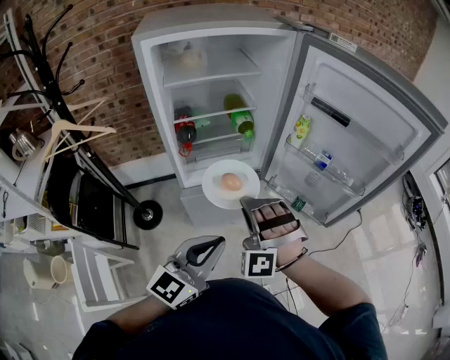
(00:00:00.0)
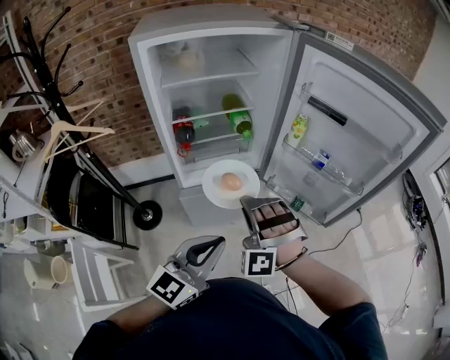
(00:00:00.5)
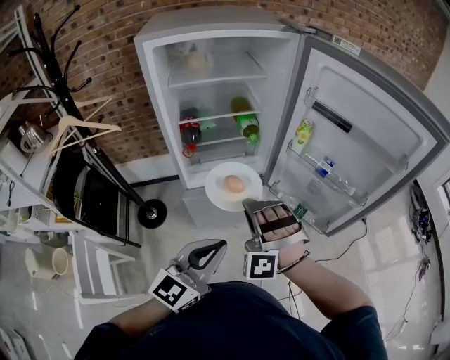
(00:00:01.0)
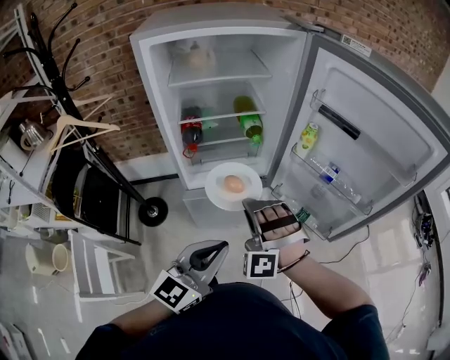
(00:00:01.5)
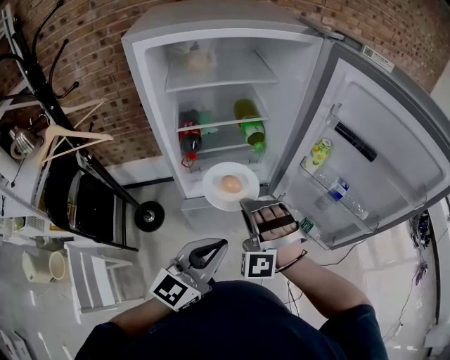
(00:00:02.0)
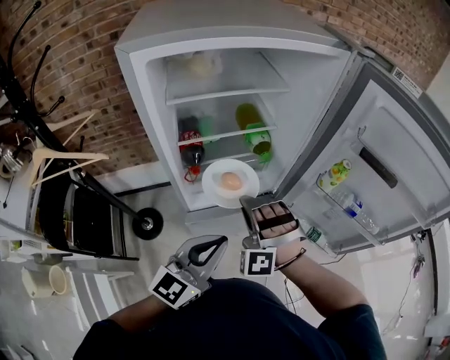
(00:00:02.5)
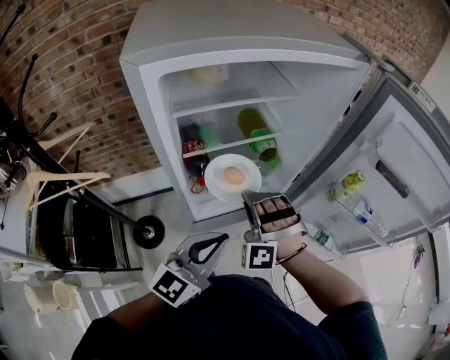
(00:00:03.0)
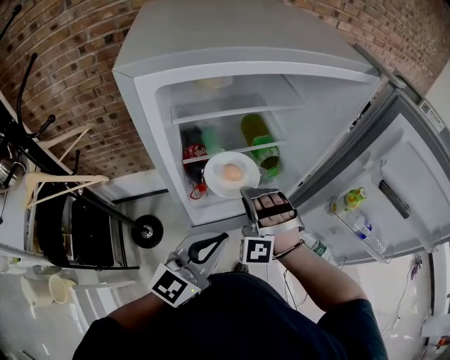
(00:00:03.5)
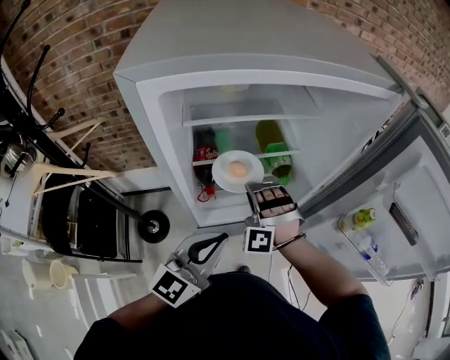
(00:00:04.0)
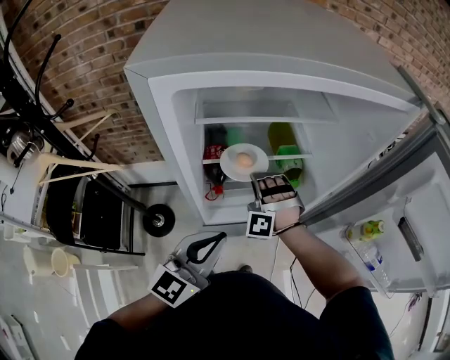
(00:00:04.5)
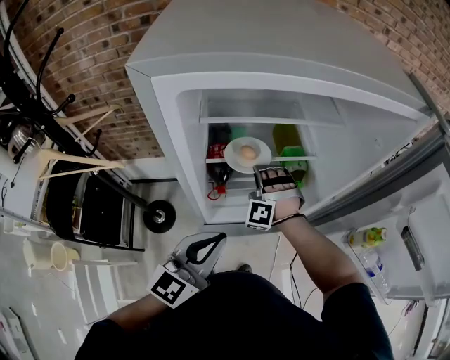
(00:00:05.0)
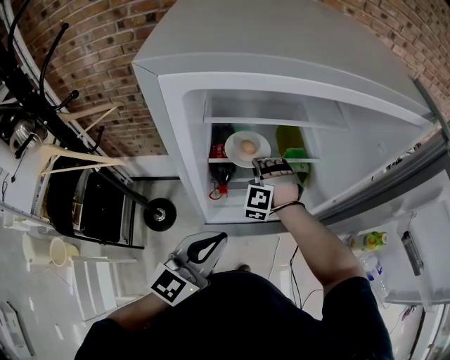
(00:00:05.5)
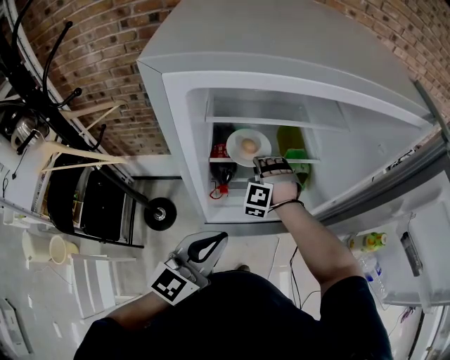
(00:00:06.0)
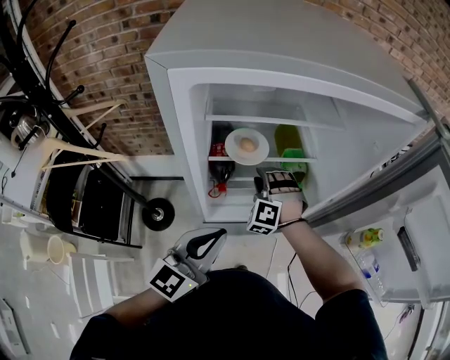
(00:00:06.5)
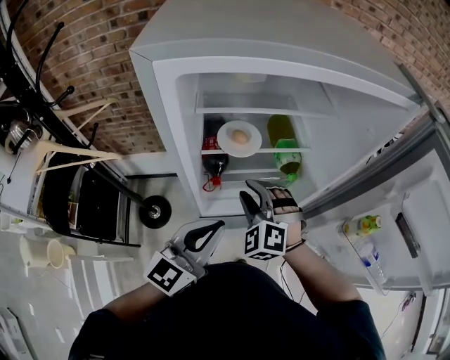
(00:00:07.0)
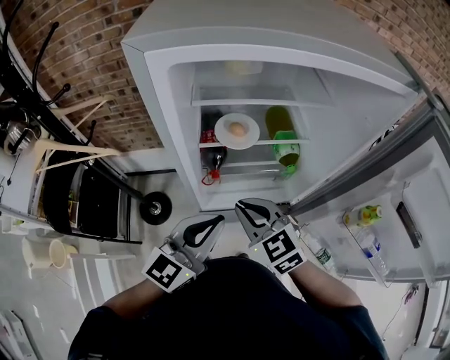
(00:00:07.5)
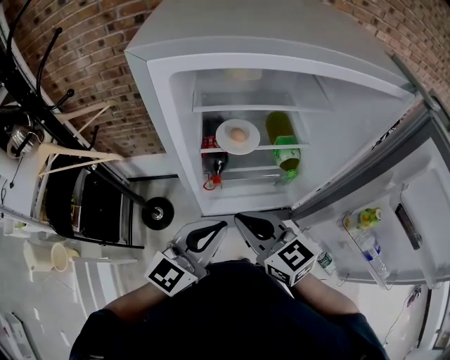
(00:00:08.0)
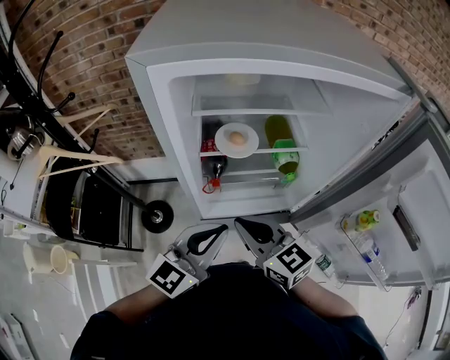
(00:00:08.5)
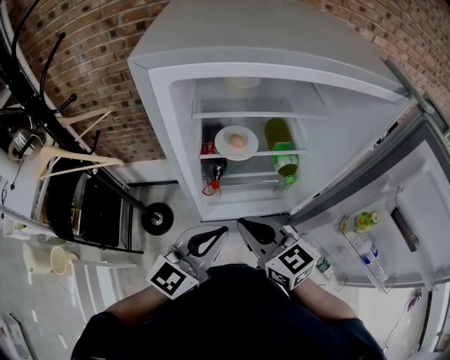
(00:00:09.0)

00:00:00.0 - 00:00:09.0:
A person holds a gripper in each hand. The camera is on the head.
00:00:00.0 - 00:00:02.0: The left gripper changes place by some 10 cm.
00:00:02.0 - 00:00:04.5: The left gripper moves roughly 25 cm.

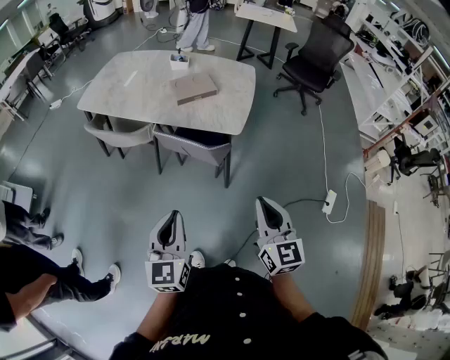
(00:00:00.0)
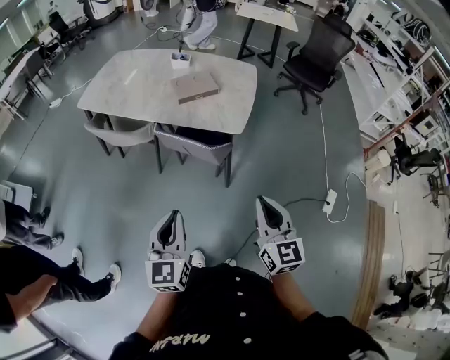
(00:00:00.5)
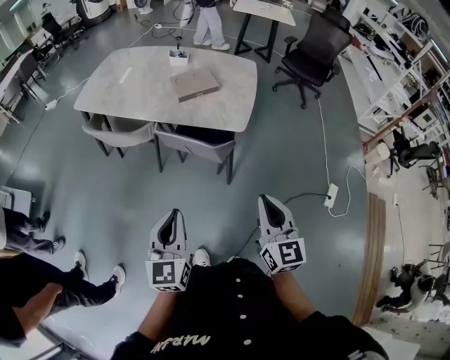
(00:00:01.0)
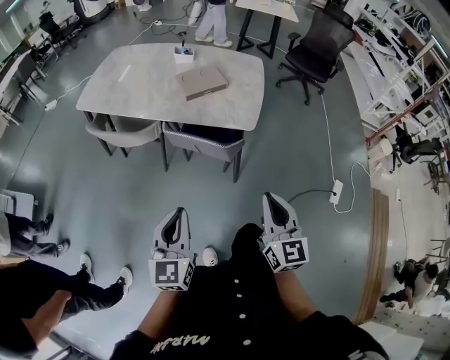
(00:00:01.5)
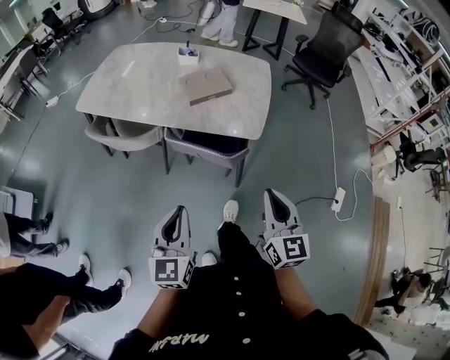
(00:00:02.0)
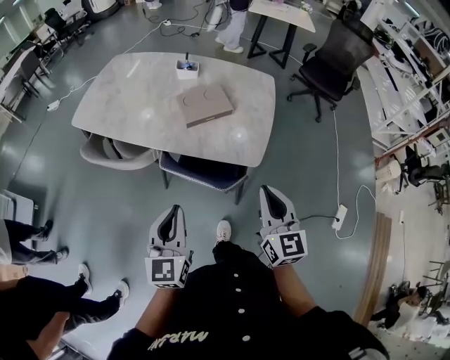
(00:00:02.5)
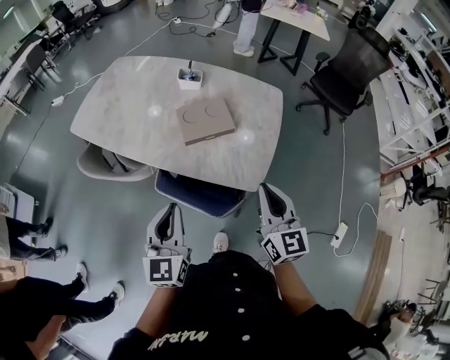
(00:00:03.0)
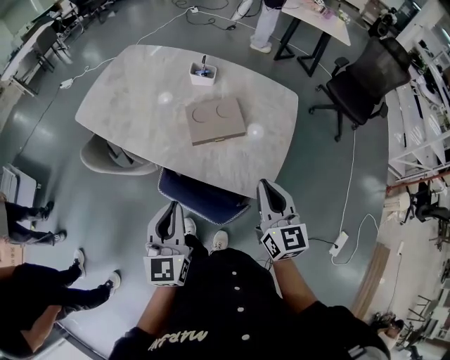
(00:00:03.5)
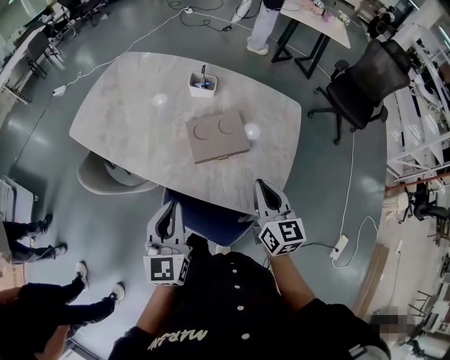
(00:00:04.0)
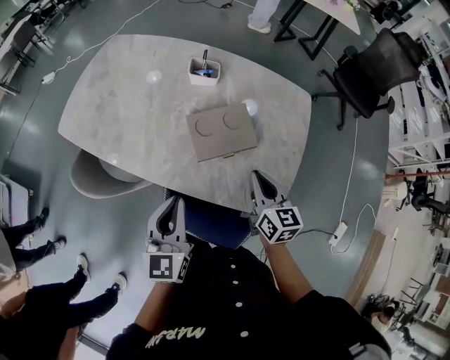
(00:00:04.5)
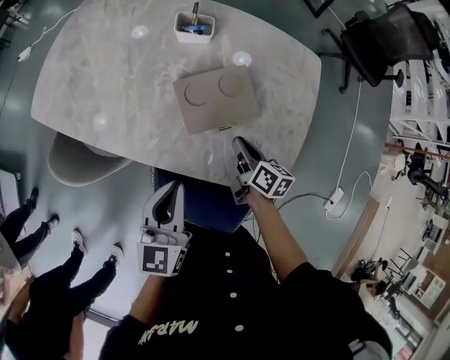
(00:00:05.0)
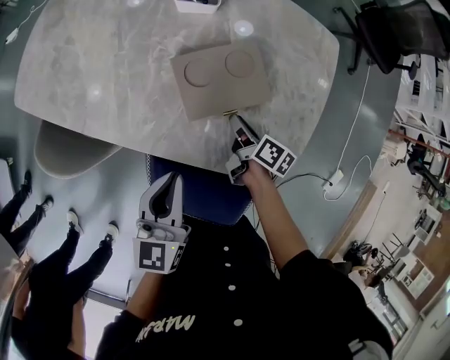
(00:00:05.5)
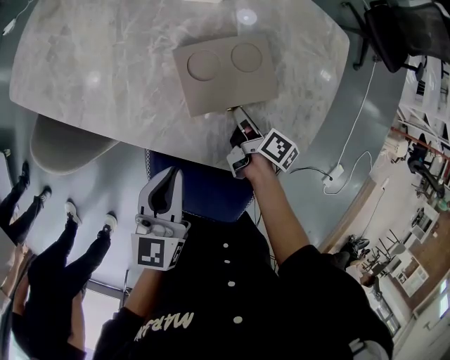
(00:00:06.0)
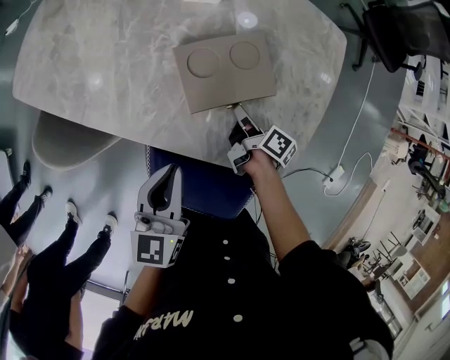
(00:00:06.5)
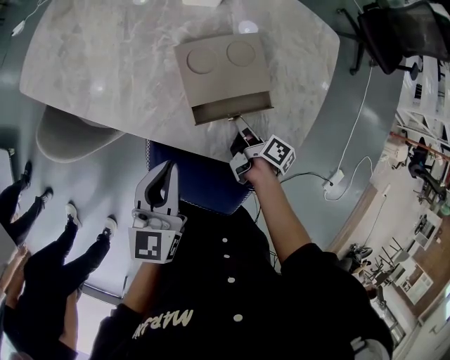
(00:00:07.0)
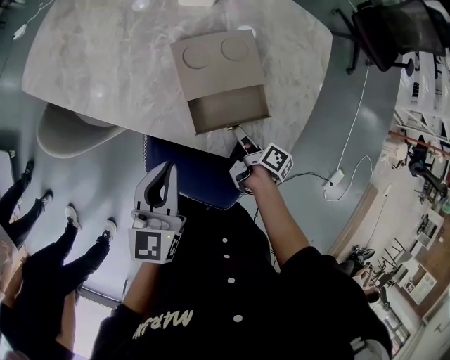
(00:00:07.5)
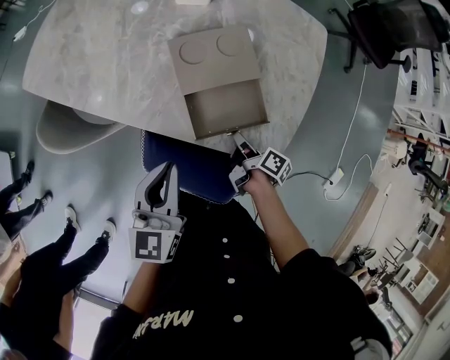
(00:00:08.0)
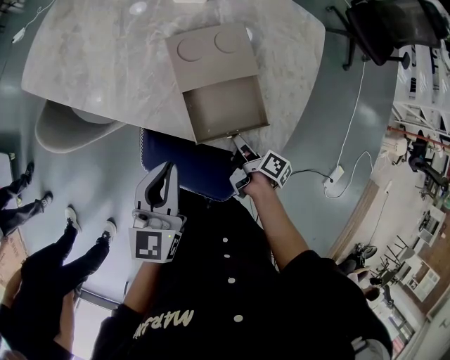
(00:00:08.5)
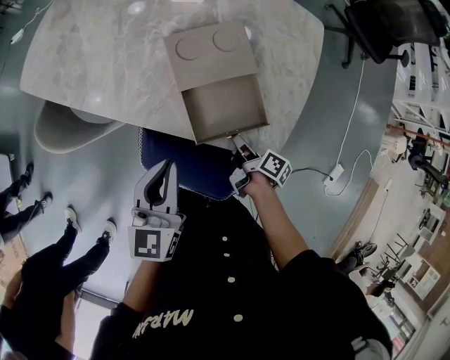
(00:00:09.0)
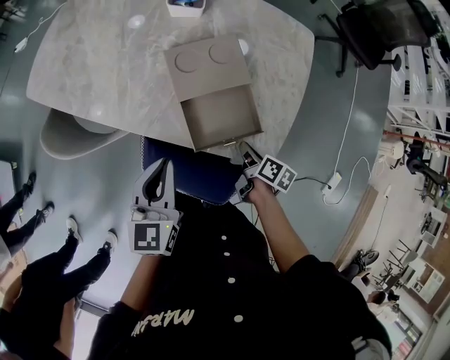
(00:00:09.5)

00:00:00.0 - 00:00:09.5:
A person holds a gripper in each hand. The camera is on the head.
00:00:00.0 - 00:00:02.0: Both grippers move forward and to the left, some 15 cm.
00:00:02.0 - 00:00:04.0: The grippers both shift forward by some 40 cm.
00:00:04.0 - 00:00:05.5: The right gripper moves downward and forward, some 30 cm, twists some 50 degrees clockwise, seen from behind, and opens up. Meanwhile the left gripper travels downward and forward by some 15 cm, and turns by roughly 20 degrees.
00:00:05.5 - 00:00:07.5: The right gripper travels backward by about 10 cm.
00:00:07.5 - 00:00:09.5: The right gripper is displaced backward by approximately 5 cm, and swivels about 20 degrees.

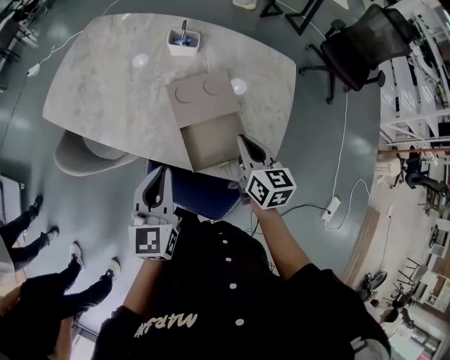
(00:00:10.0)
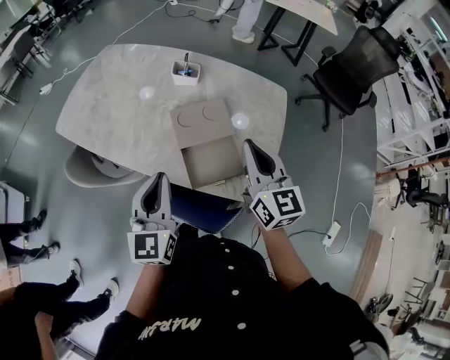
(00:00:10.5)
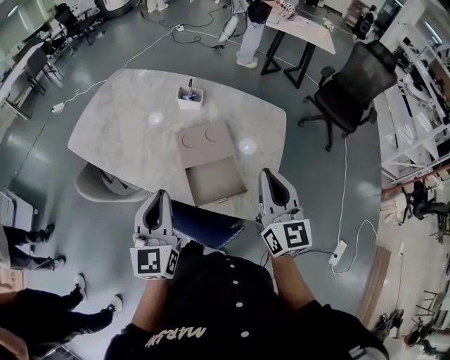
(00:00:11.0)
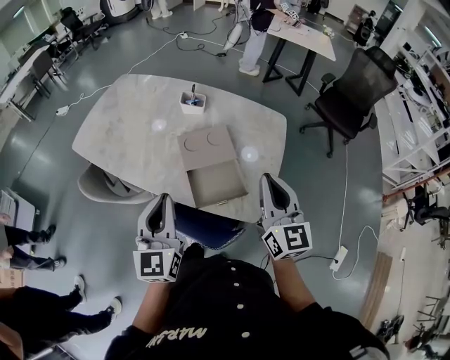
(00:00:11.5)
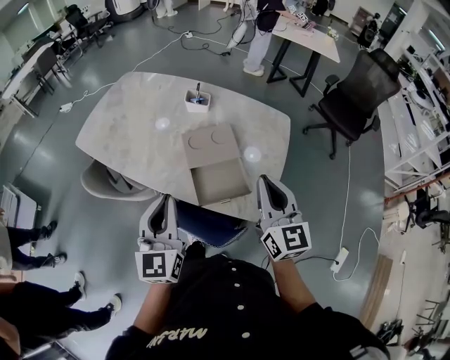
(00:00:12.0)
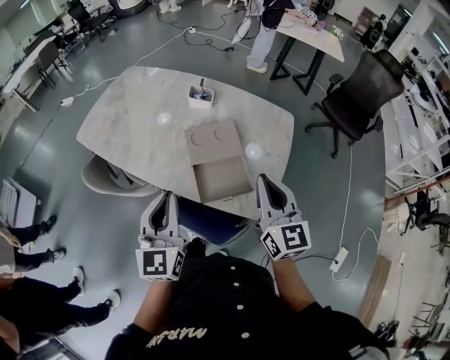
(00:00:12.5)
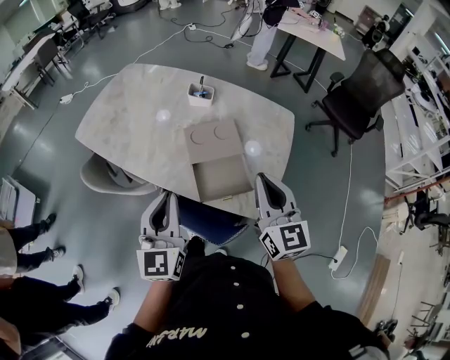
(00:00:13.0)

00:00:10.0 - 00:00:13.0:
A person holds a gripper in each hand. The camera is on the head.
00:00:10.0 - 00:00:11.5: The right gripper shifts some 20 cm upward and backward, and turns by about 30 degrees, while the left gripper moves upward and backward, approximately 10 cm.
00:00:11.5 - 00:00:13.0: The grippers move only a little.

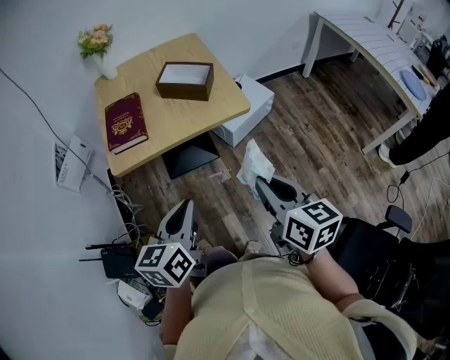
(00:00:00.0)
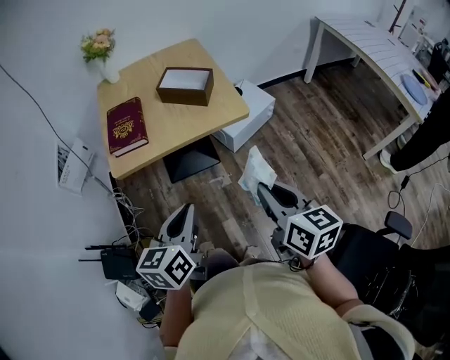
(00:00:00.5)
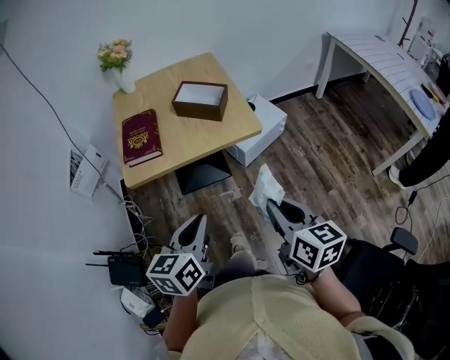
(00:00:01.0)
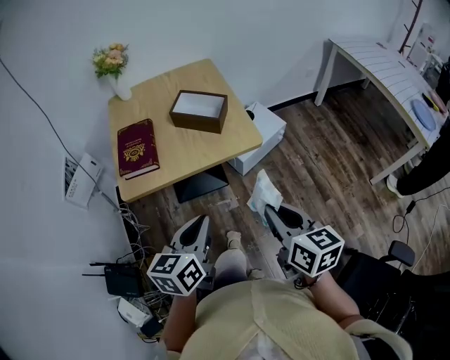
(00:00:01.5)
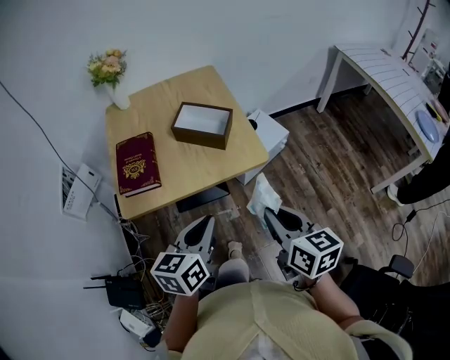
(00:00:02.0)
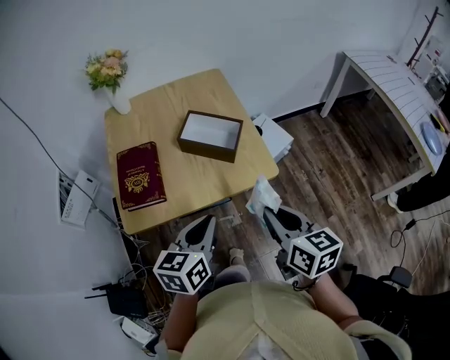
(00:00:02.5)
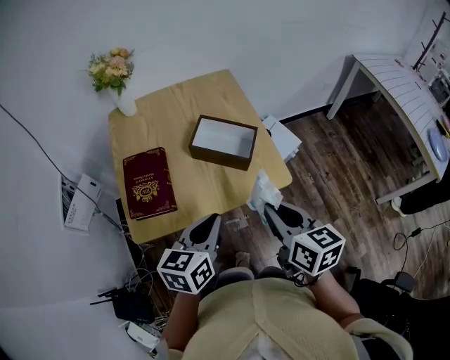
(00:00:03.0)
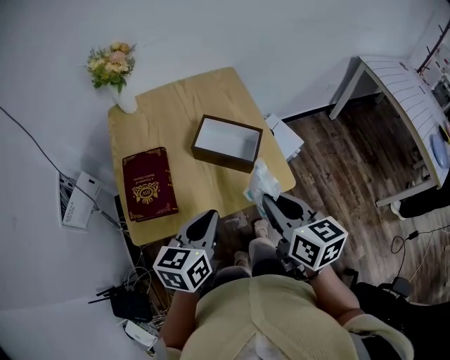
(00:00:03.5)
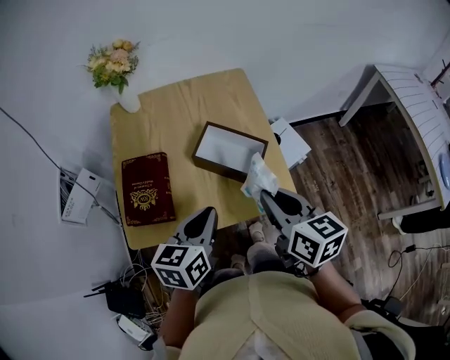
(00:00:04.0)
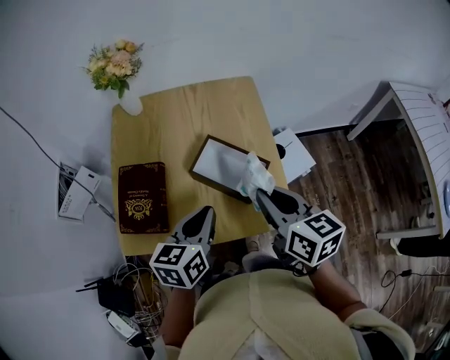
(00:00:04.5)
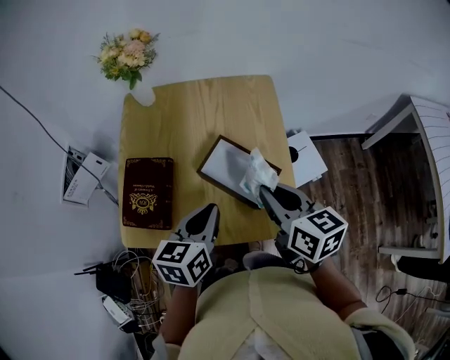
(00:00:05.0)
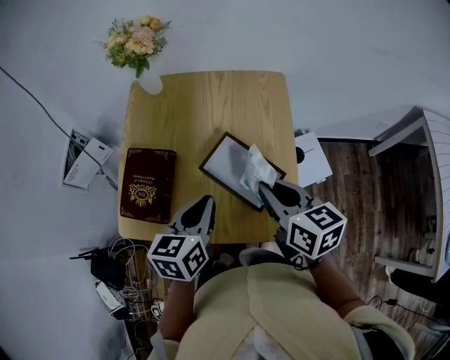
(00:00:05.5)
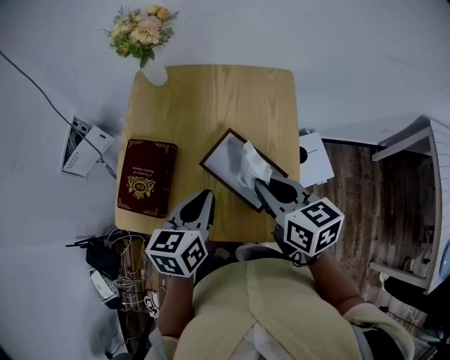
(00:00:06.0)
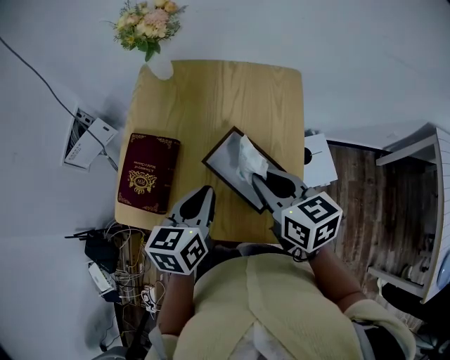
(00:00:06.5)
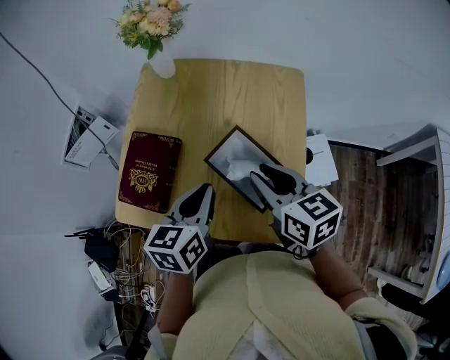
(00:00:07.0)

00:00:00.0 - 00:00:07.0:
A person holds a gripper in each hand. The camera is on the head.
00:00:00.0 - 00:00:02.0: The grippers both shift forward by some 10 cm.
00:00:02.0 - 00:00:03.5: Both grippers travel together forward and to the left, approximately 15 cm.
00:00:03.5 - 00:00:05.0: The two grippers go about 15 cm forward.
00:00:05.0 - 00:00:07.0: The right gripper heads forward, covering about 5 cm.
